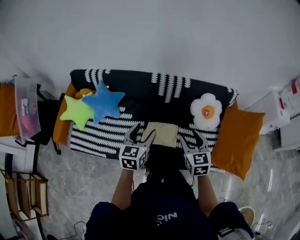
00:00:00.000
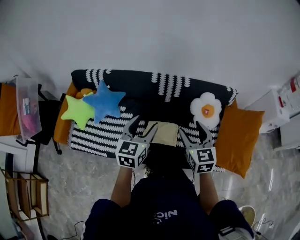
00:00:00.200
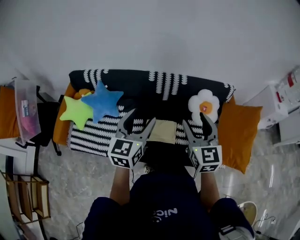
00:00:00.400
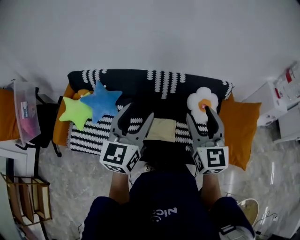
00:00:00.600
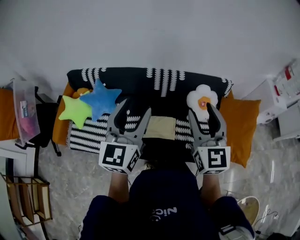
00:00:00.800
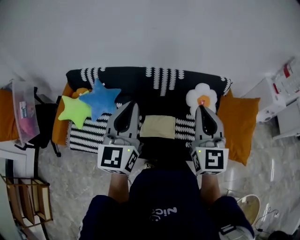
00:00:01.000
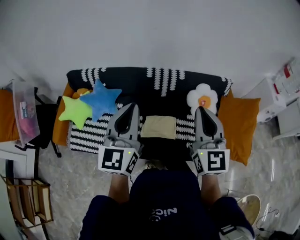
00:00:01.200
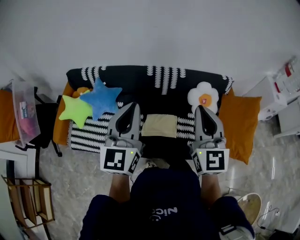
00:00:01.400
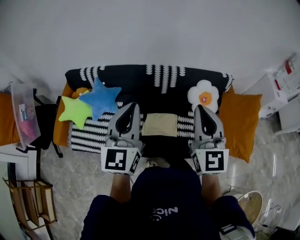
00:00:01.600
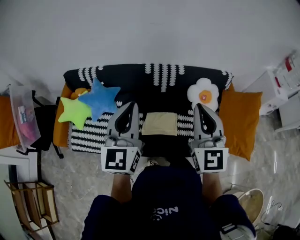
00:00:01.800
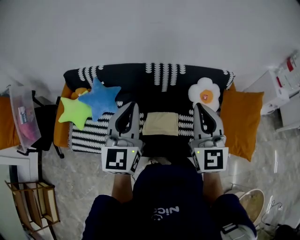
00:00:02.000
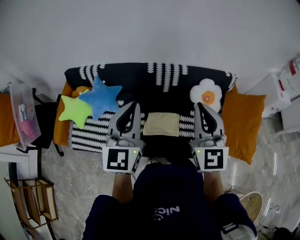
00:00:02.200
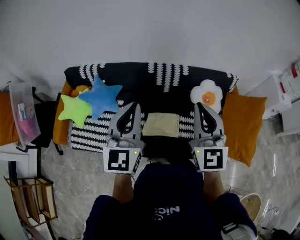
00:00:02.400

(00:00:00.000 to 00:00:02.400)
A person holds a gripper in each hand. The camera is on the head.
00:00:00.000 - 00:00:01.200: Both grippers travel together upward, approximately 20 cm. The left gripper changes its angle by roughly 30 degrees, and closes up. The right gripper turns by about 30 degrees, and closes up.
00:00:01.200 - 00:00:02.400: The left gripper moves some 5 cm. The right gripper shifts roughly 5 cm forward.

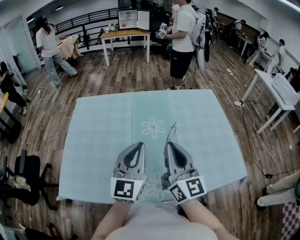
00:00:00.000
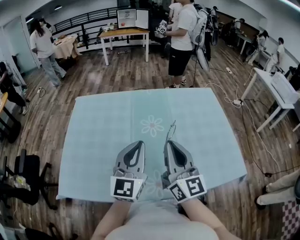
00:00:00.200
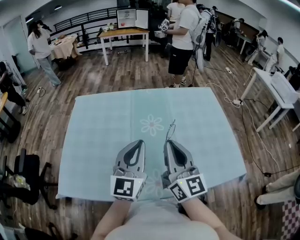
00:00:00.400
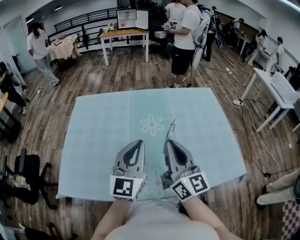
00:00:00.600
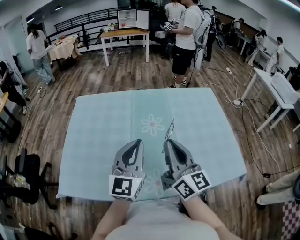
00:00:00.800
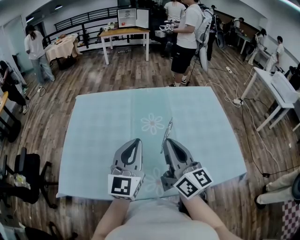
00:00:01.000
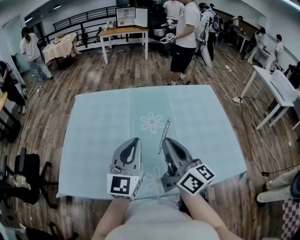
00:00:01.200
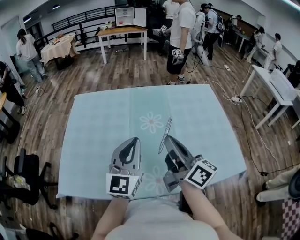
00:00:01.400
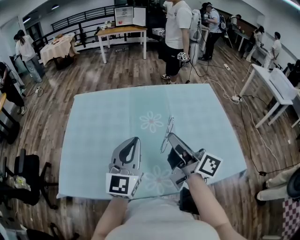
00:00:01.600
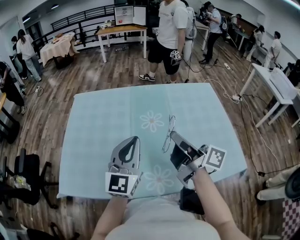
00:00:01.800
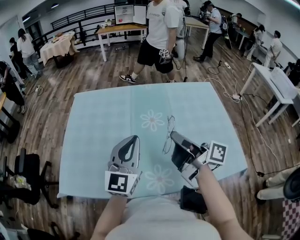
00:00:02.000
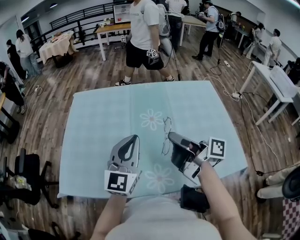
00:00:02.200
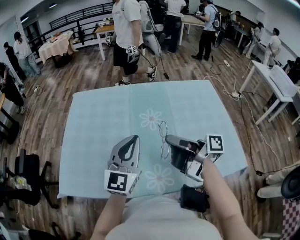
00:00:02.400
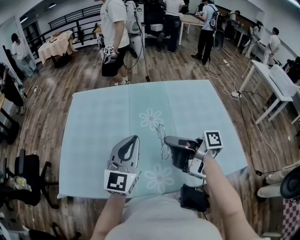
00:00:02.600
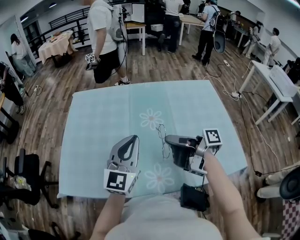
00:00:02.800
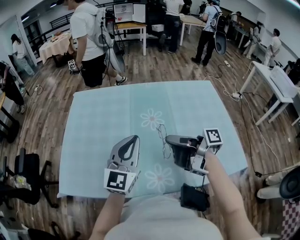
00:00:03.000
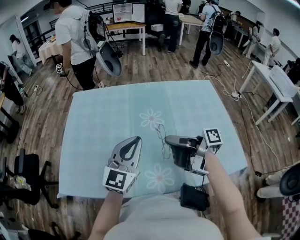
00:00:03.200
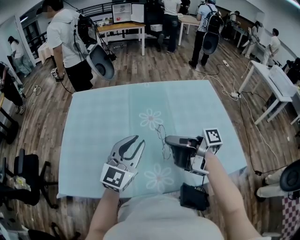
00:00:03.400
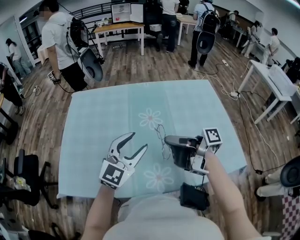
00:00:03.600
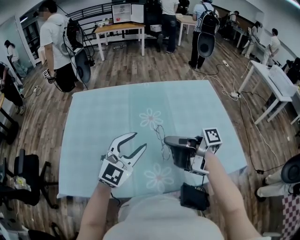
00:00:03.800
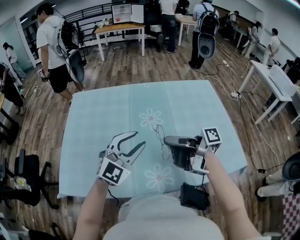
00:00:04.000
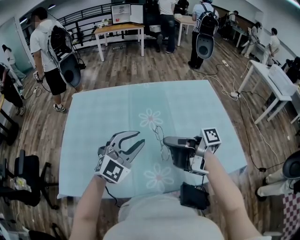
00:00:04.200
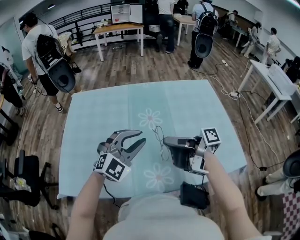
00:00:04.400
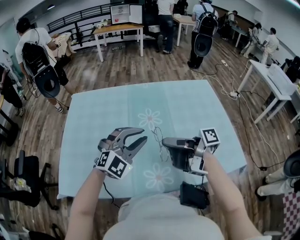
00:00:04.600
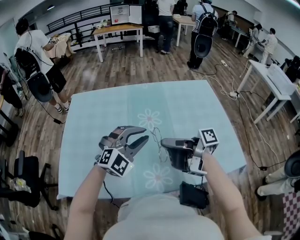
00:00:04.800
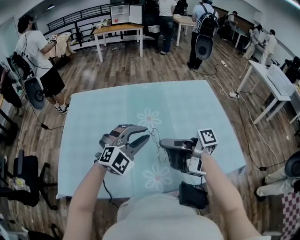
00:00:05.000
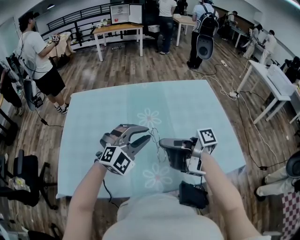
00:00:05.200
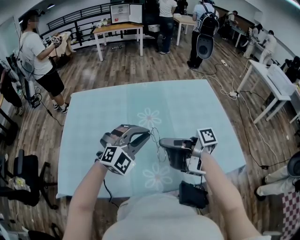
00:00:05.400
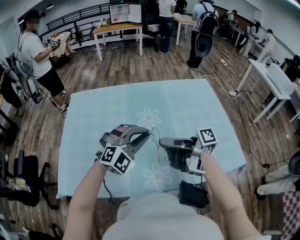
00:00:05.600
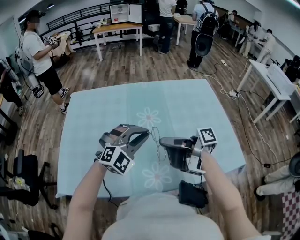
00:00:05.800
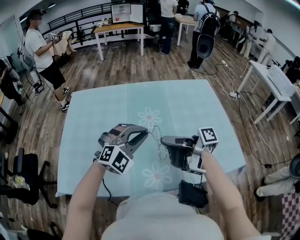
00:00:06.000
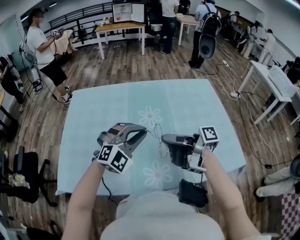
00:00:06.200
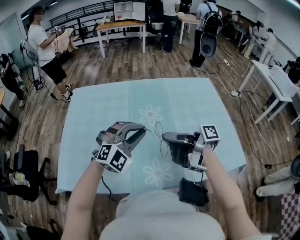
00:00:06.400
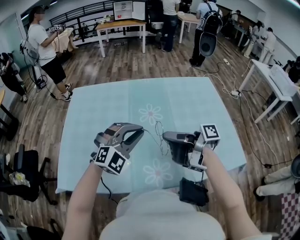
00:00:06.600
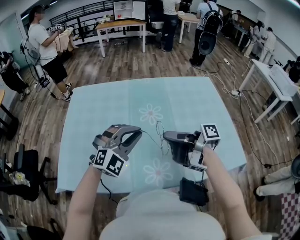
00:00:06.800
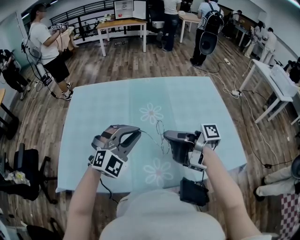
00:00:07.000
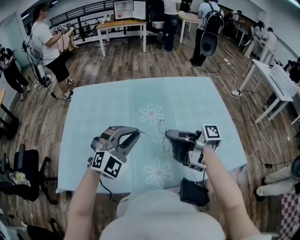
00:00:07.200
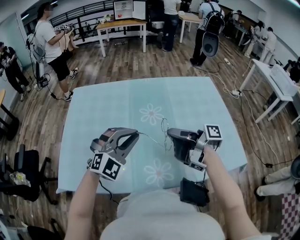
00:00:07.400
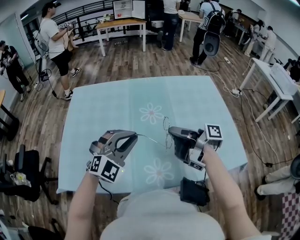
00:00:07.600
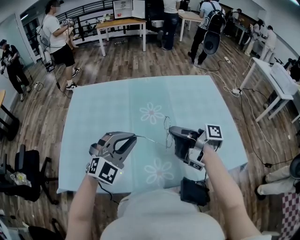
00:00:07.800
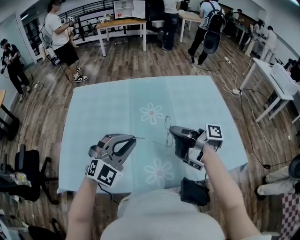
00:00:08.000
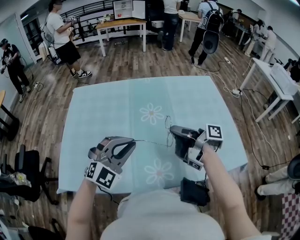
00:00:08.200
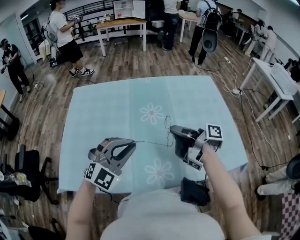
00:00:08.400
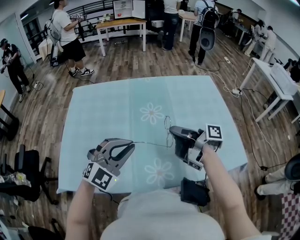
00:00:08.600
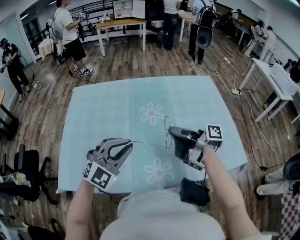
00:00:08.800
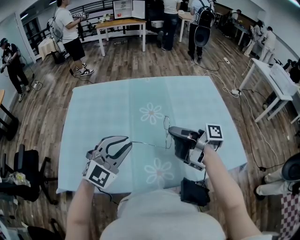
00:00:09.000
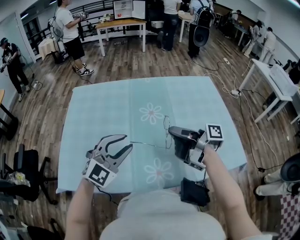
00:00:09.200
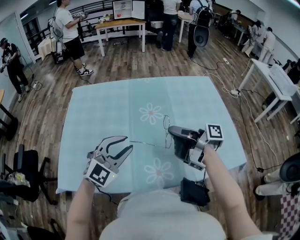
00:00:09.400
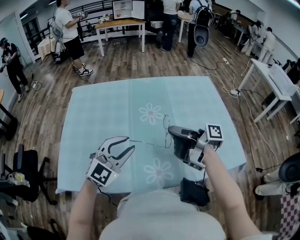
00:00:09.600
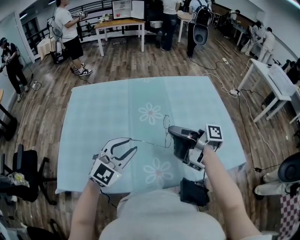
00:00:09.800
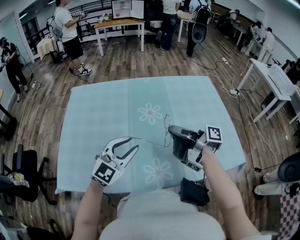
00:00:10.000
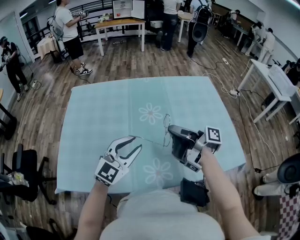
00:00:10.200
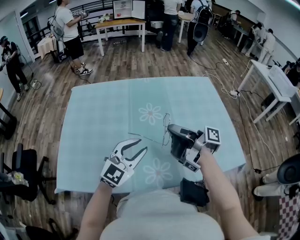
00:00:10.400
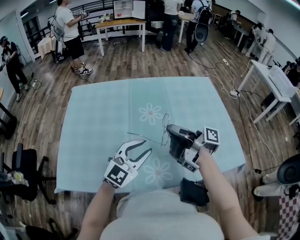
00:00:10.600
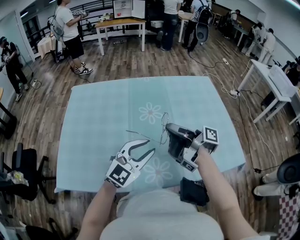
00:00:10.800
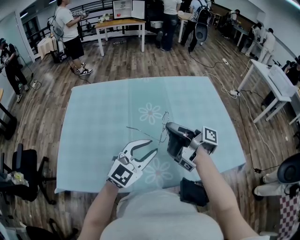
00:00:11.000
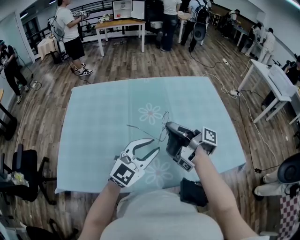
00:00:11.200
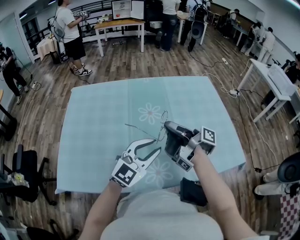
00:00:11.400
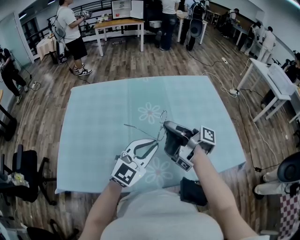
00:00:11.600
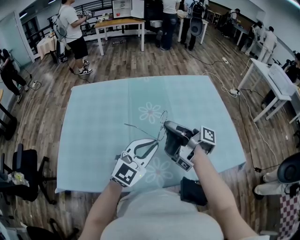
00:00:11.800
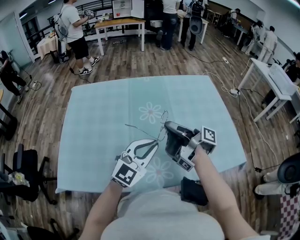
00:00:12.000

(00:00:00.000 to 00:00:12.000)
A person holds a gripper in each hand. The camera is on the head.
00:00:03.000 - 00:00:04.400: The left gripper shifts by approximately 5 cm, turns by about 50 degrees, and opens up.
00:00:06.000 - 00:00:07.600: The left gripper shifts by about 5 cm.
00:00:09.000 - 00:00:10.400: The left gripper changes place by approximately 5 cm.
00:00:10.400 - 00:00:12.000: The left gripper shifts by roughly 5 cm, and closes.

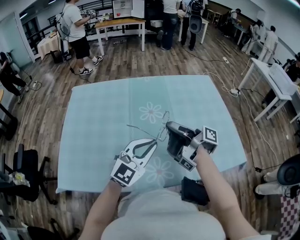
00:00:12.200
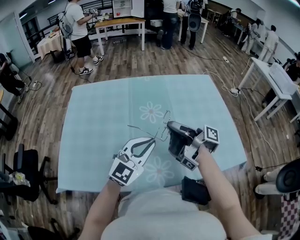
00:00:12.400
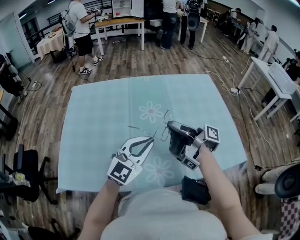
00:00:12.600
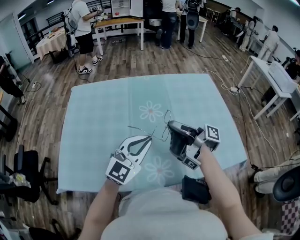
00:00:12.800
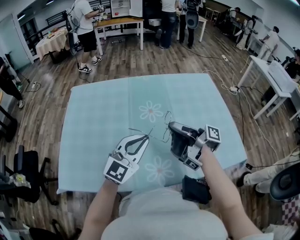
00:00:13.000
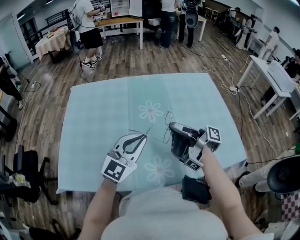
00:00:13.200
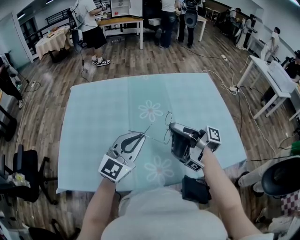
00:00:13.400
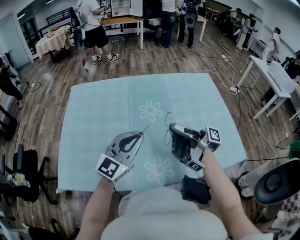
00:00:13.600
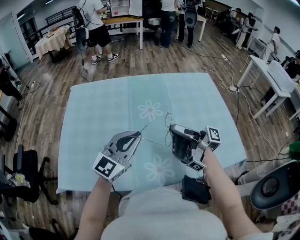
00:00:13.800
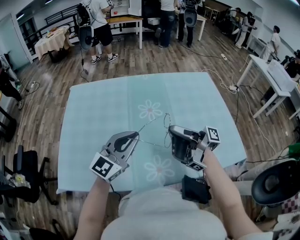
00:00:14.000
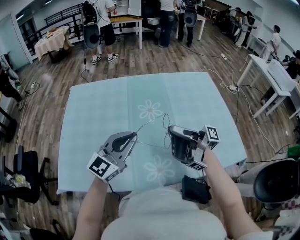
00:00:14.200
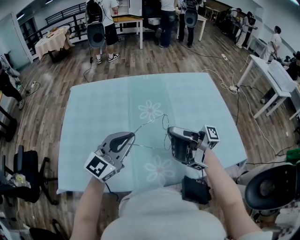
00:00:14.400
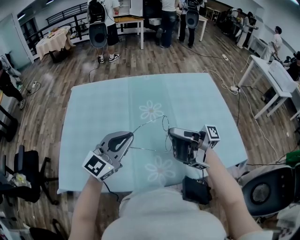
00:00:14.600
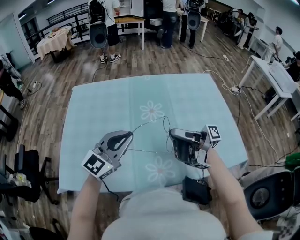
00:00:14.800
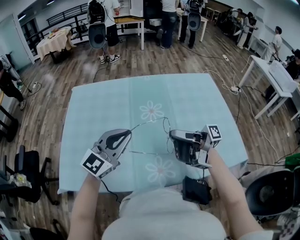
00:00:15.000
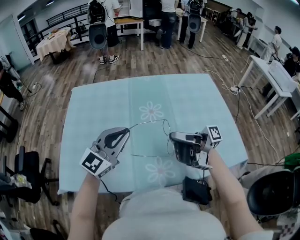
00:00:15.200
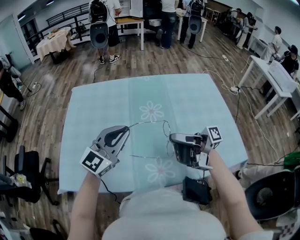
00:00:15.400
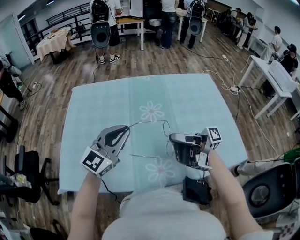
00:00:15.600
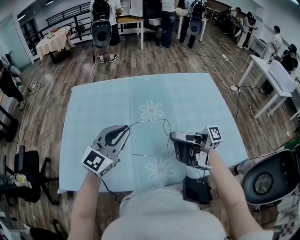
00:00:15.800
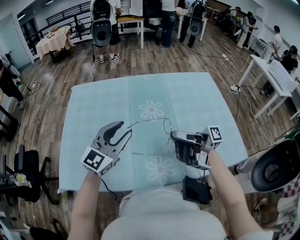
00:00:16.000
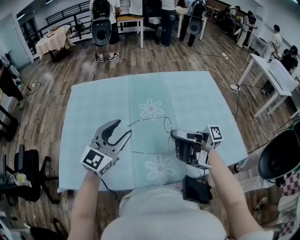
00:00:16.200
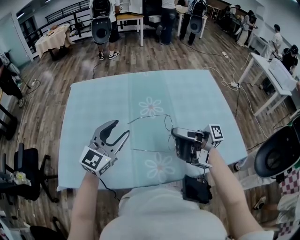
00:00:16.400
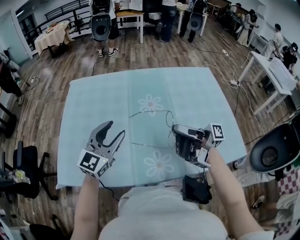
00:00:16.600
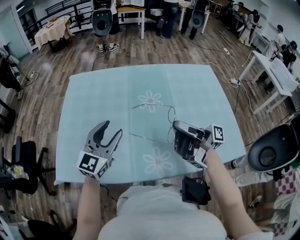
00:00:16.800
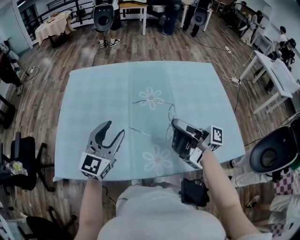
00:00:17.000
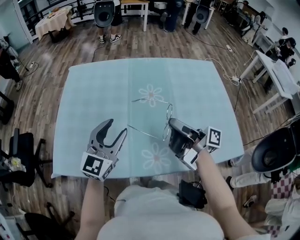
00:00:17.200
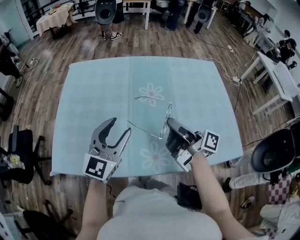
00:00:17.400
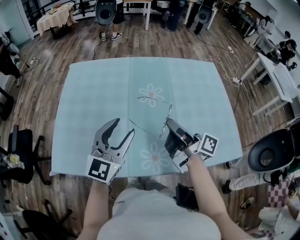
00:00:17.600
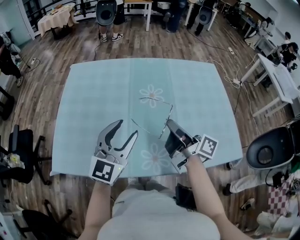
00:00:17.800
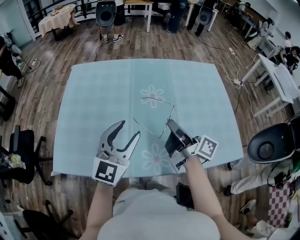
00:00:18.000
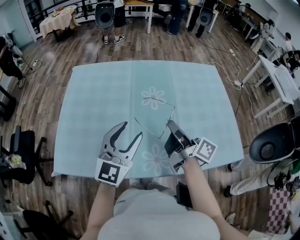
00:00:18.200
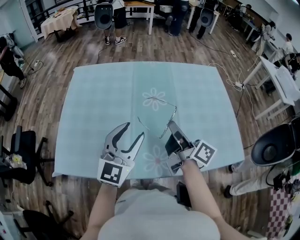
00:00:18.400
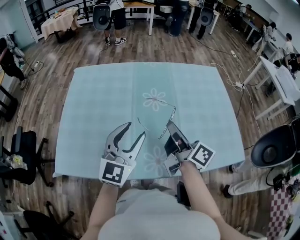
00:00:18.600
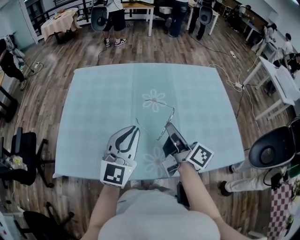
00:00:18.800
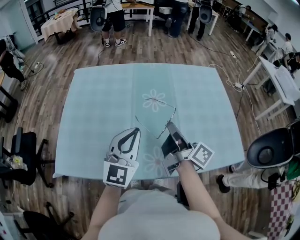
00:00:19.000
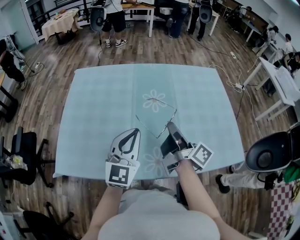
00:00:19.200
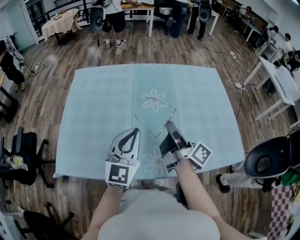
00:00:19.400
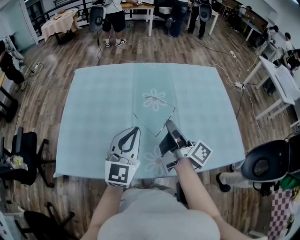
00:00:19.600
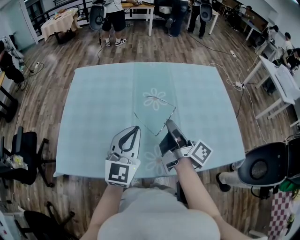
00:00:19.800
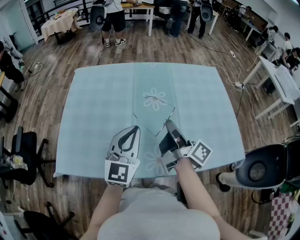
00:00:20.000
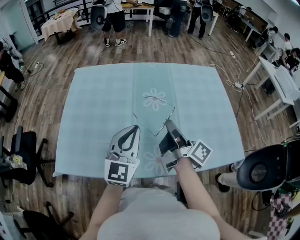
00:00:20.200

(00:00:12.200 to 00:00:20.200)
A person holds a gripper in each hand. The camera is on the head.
00:00:12.200 - 00:00:13.800: The left gripper changes place by approximately 5 cm.
00:00:15.400 - 00:00:17.000: The left gripper shifts by approximately 5 cm, and opens up.
00:00:17.000 - 00:00:18.600: The left gripper shifts by about 5 cm.
00:00:18.600 - 00:00:20.200: The left gripper closes its fingers.

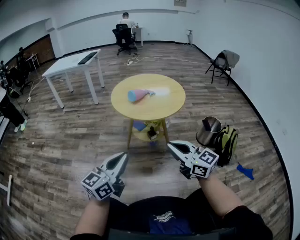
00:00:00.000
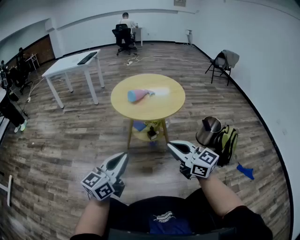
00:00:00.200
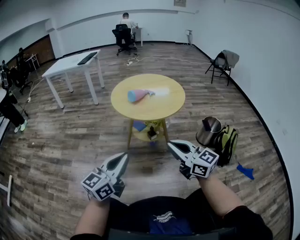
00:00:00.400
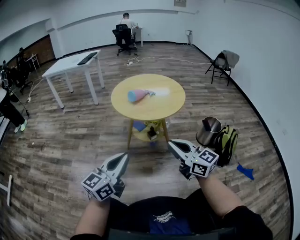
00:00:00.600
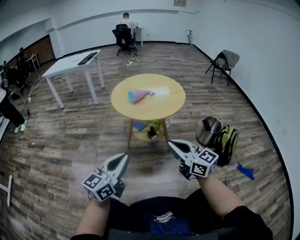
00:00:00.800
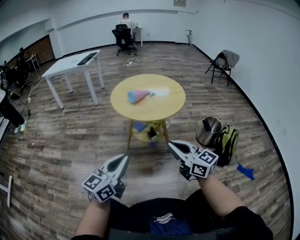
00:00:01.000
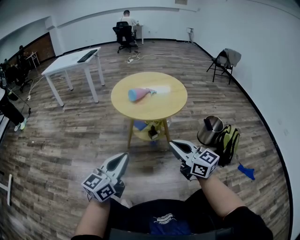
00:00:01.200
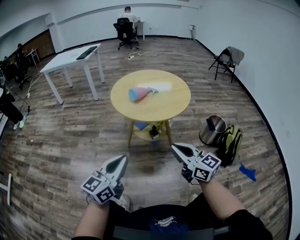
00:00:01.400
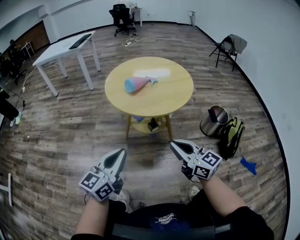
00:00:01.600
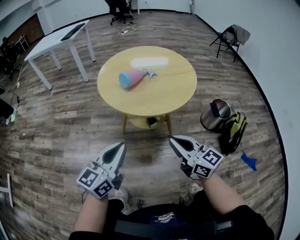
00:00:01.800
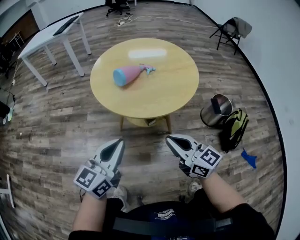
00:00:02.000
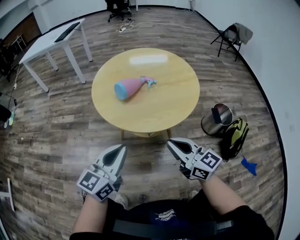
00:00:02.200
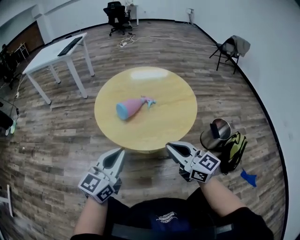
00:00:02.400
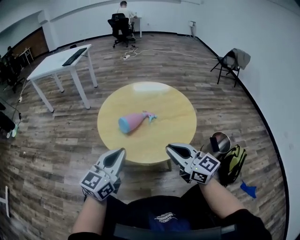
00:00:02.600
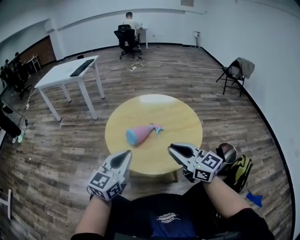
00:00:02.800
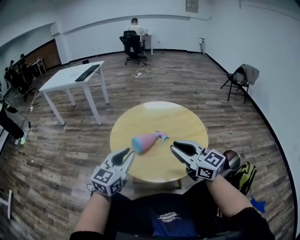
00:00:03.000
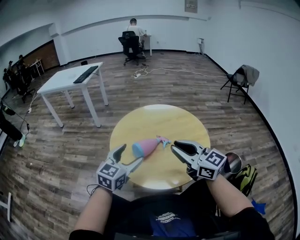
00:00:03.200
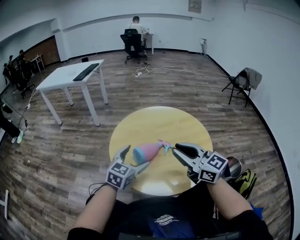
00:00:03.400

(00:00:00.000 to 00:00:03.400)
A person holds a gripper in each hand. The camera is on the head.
00:00:00.000 - 00:00:01.600: The grippers both shift forward and downward by roughly 15 cm.
00:00:01.600 - 00:00:03.400: The two grippers go roughly 40 cm forward. The left gripper turns by approximately 30 degrees, and opens up.
